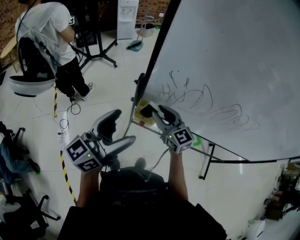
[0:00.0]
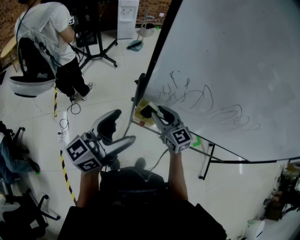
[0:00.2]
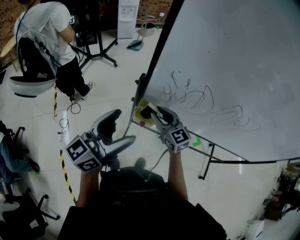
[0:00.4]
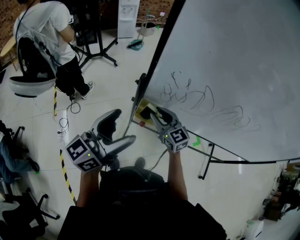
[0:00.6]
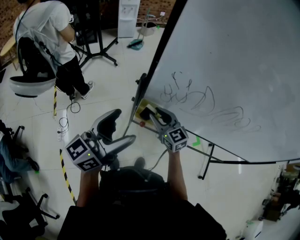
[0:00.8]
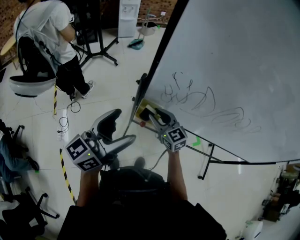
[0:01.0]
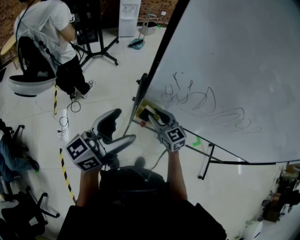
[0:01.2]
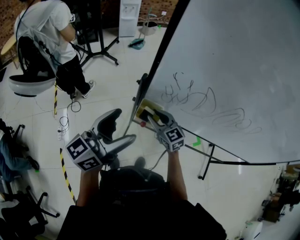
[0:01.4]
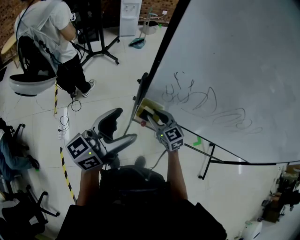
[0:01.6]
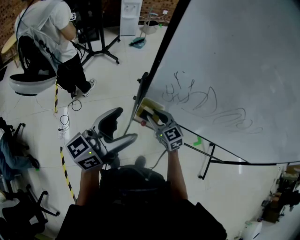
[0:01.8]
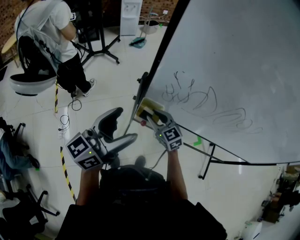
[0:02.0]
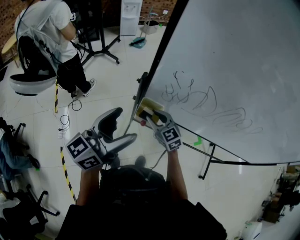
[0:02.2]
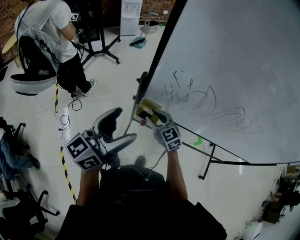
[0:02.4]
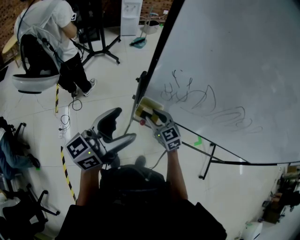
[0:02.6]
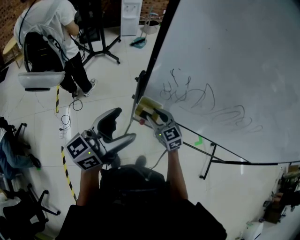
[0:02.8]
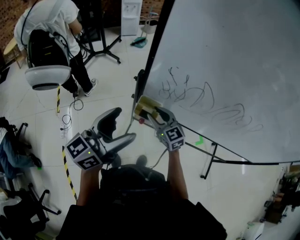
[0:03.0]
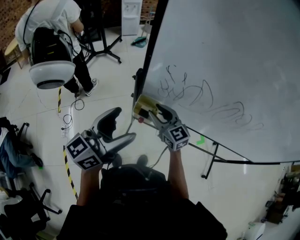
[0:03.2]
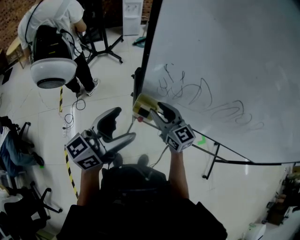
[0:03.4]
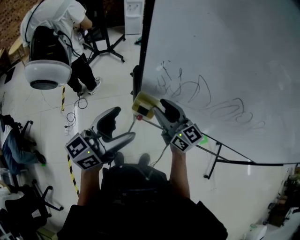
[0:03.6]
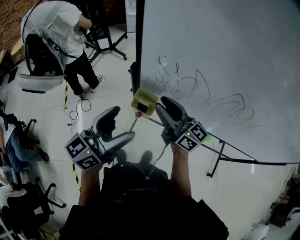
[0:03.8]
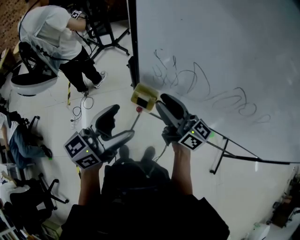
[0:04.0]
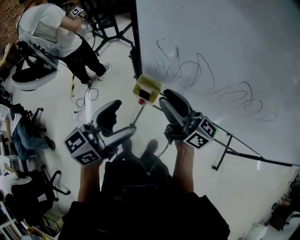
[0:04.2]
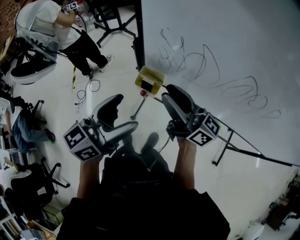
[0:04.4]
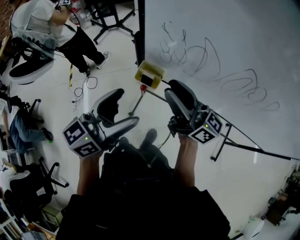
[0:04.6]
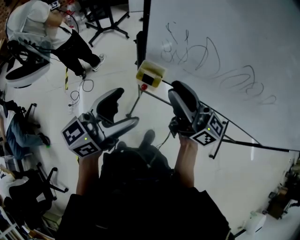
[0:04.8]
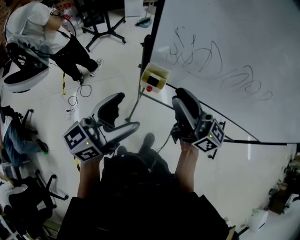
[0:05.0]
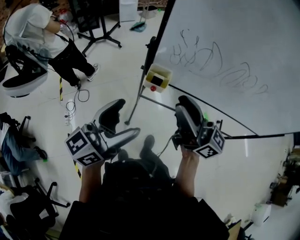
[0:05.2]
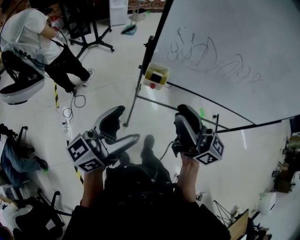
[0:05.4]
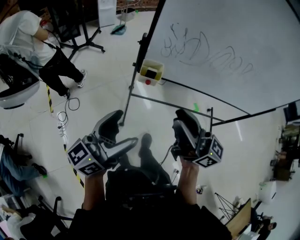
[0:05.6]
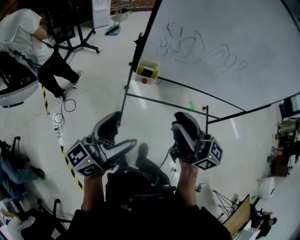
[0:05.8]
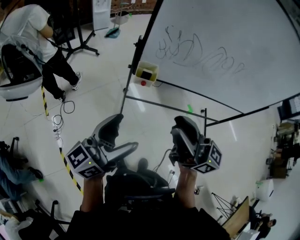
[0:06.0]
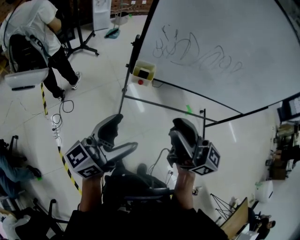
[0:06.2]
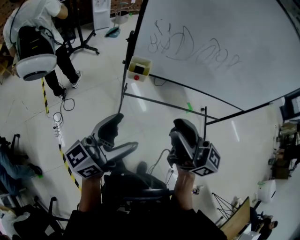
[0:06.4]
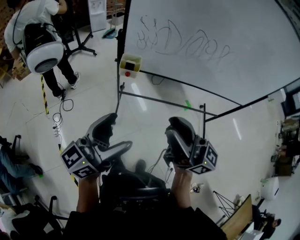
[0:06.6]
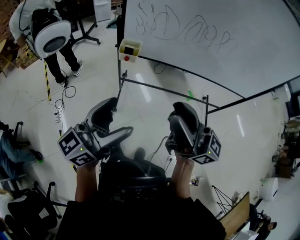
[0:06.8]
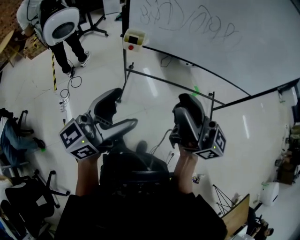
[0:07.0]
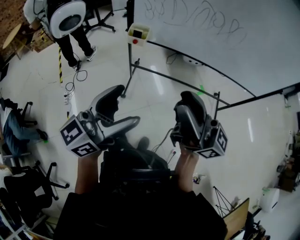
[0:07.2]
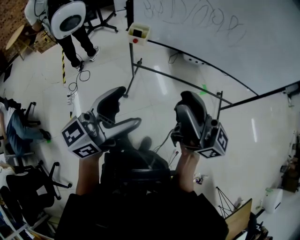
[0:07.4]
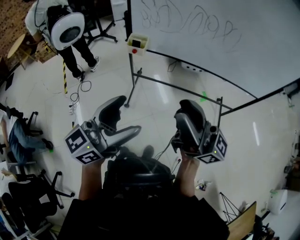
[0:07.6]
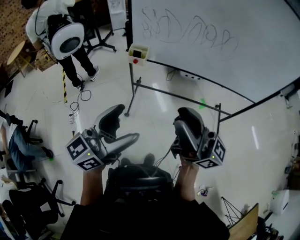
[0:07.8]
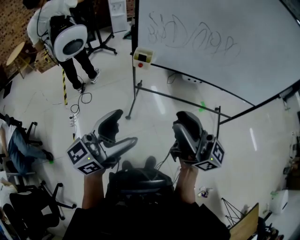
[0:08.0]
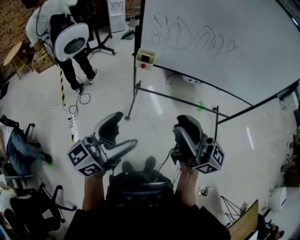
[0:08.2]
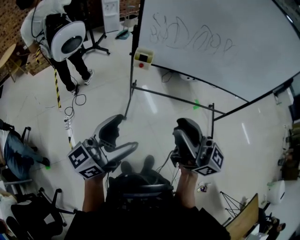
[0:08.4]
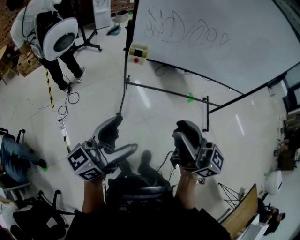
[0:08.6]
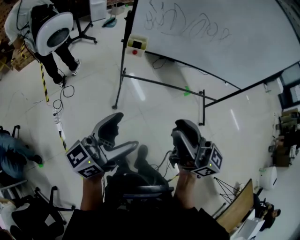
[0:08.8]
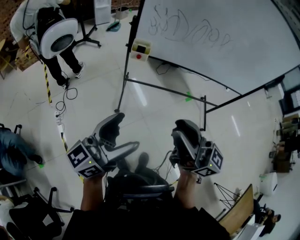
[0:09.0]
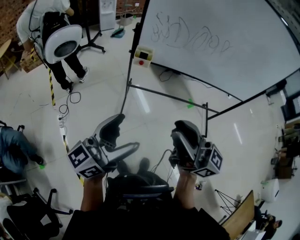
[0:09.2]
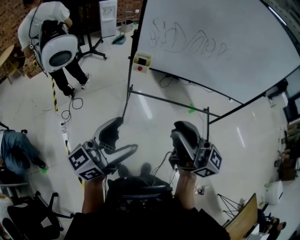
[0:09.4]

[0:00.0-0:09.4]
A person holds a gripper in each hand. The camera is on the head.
0.0 to 1.6 s: The right gripper is displaced downward by approximately 10 cm.
1.6 to 3.2 s: The right gripper shifts by roughly 5 cm.
3.2 to 4.8 s: The left gripper heads backward, covering approximately 5 cm, while the right gripper goes approximately 20 cm upward and backward, and angles its fingers upward, by some 30 degrees.
4.8 to 6.2 s: The left gripper shifts some 20 cm backward and to the left. Meanwhile the right gripper goes some 25 cm backward.
6.2 to 7.8 s: The left gripper heads backward and to the right, covering about 20 cm. The right gripper shifts roughly 20 cm to the right and backward.
7.8 to 9.4 s: The grippers both shift to the left by approximately 10 cm.

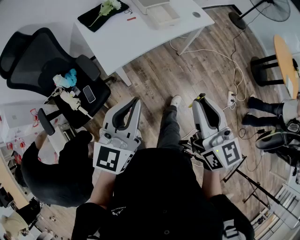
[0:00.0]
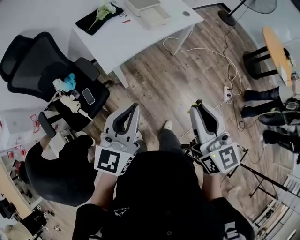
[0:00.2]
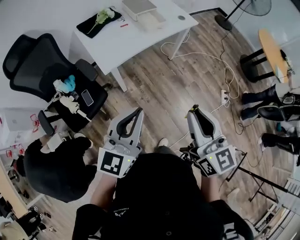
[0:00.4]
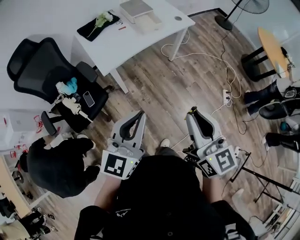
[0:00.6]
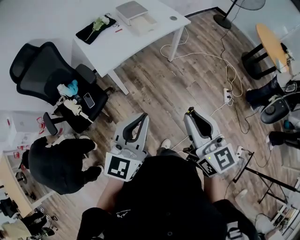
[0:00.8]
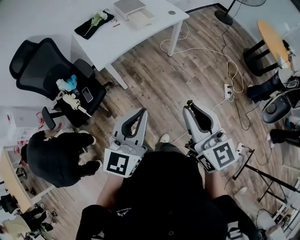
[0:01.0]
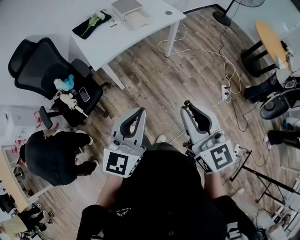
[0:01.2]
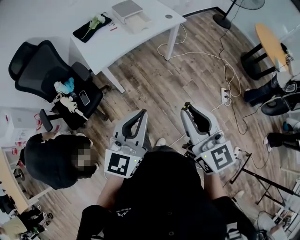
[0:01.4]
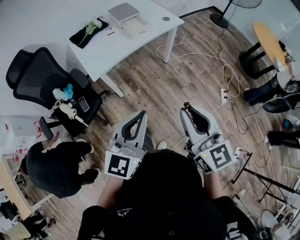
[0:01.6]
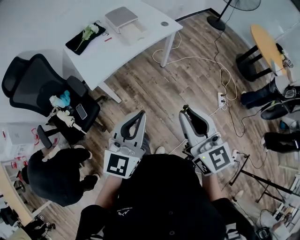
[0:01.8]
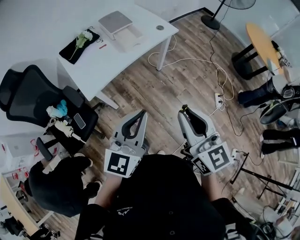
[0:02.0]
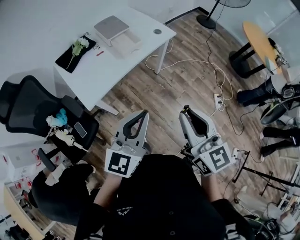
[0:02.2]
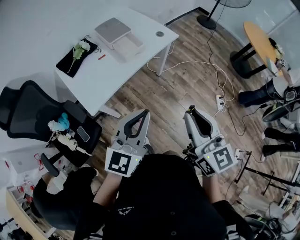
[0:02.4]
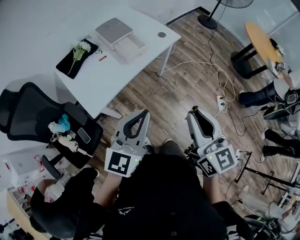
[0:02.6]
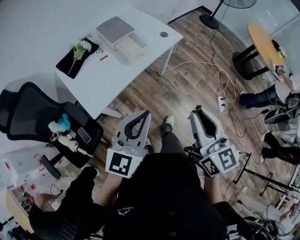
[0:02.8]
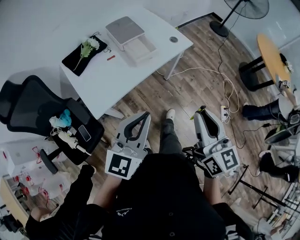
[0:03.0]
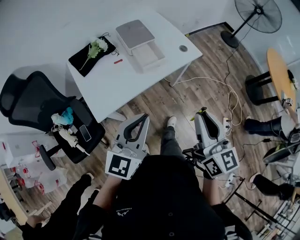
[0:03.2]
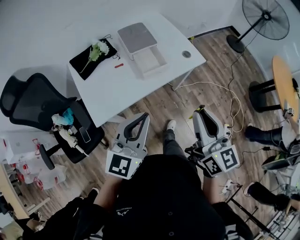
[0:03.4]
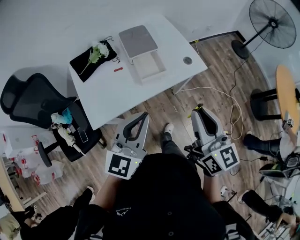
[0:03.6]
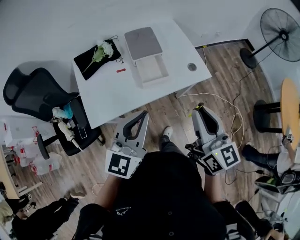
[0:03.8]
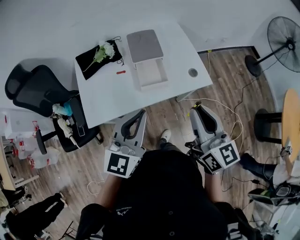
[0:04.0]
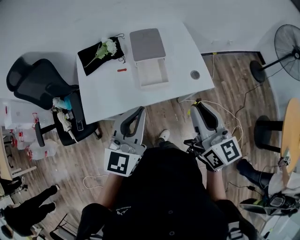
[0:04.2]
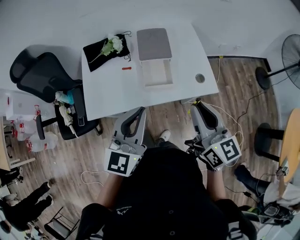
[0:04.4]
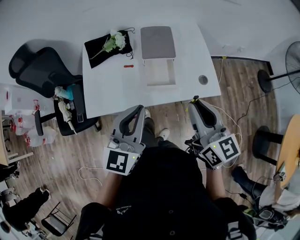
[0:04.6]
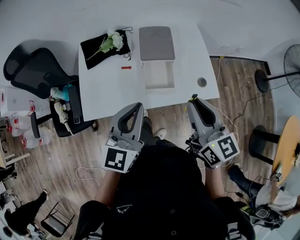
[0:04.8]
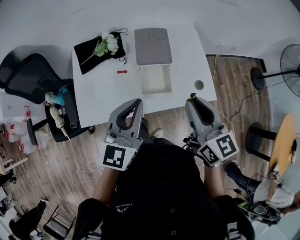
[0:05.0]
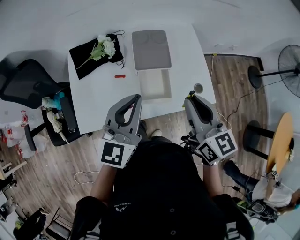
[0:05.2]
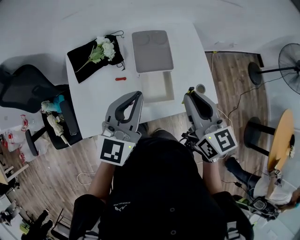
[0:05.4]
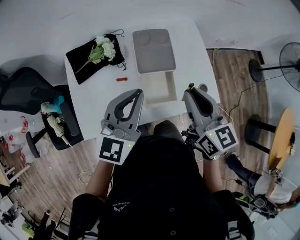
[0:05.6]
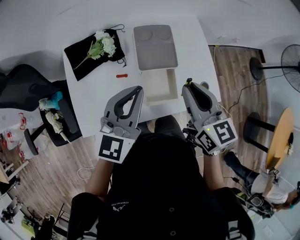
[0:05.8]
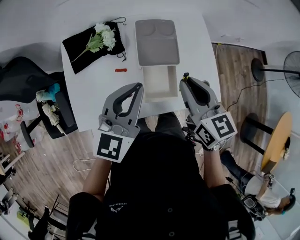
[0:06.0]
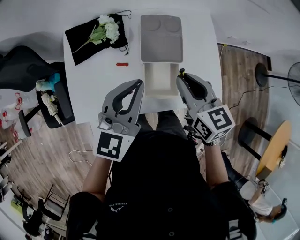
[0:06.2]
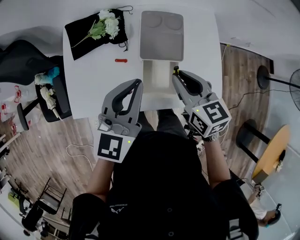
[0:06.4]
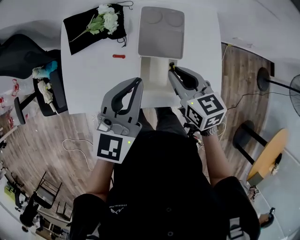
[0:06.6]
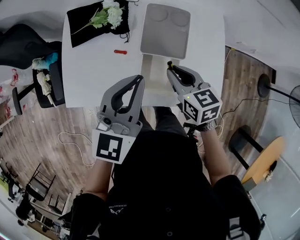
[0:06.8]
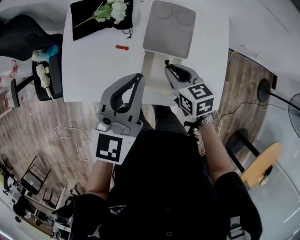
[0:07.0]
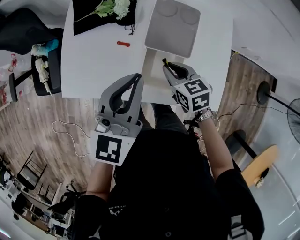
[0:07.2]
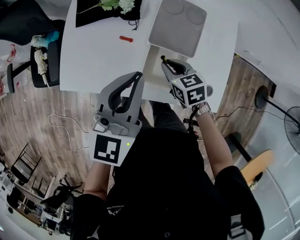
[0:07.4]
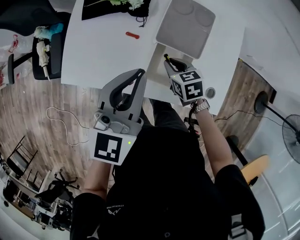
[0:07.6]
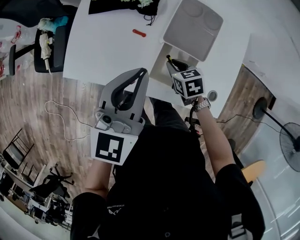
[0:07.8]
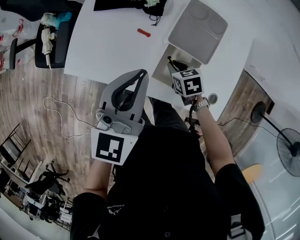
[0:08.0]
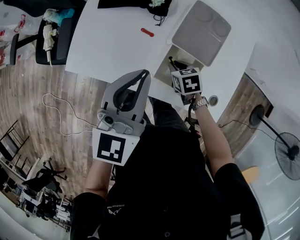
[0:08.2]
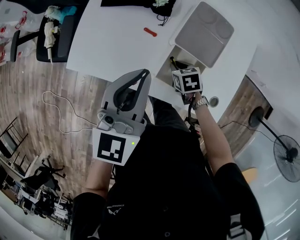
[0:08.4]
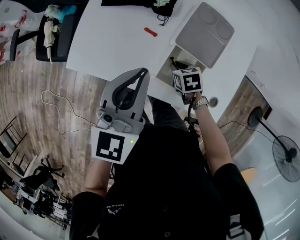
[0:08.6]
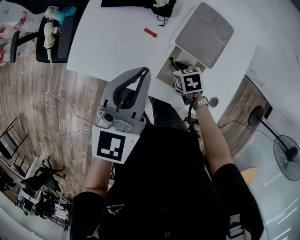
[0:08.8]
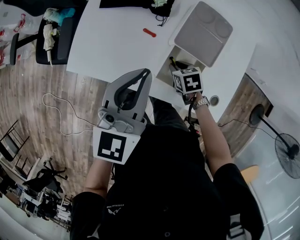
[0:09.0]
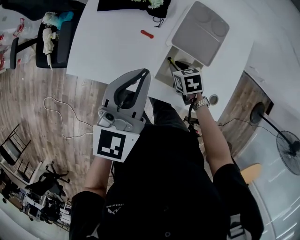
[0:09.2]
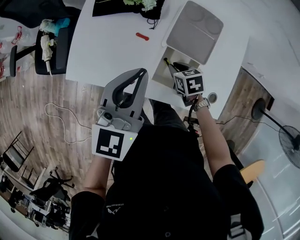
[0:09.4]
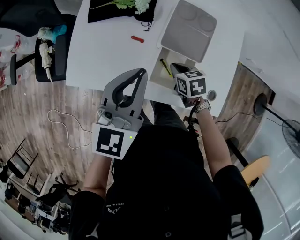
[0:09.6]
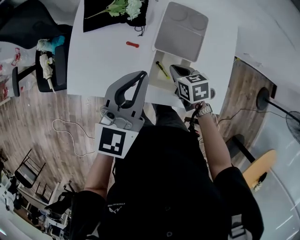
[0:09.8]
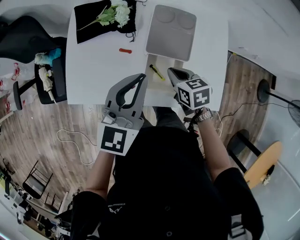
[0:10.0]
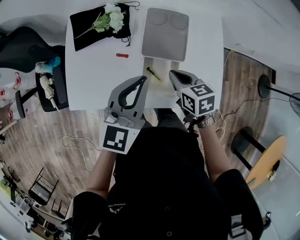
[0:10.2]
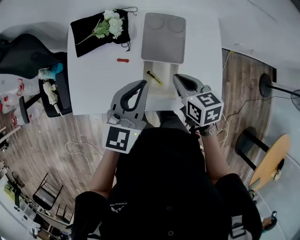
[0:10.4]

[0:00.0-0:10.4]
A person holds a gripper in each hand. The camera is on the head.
0.0 to 1.4 s: Both grippers move backward and to the right, about 25 cm.
1.4 to 3.0 s: Both grippers move forward, about 30 cm.
3.0 to 4.4 s: The right gripper moves roughly 30 cm, and rotates roughly 30 degrees. The left gripper shifts by some 25 cm, and swivels roughly 30 degrees.
4.4 to 6.0 s: The two grippers go some 25 cm forward.
6.0 to 7.4 s: The left gripper changes its angle by some 20 degrees, while the right gripper is displaced downward by about 20 cm, and swivels about 40 degrees.
7.4 to 9.0 s: The left gripper is displaced to the left by about 5 cm. Meanwhile the right gripper shifts about 10 cm downward.
9.0 to 10.4 s: The right gripper moves upward, approximately 20 cm, and changes its angle by some 40 degrees, while the left gripper moves to the right, some 10 cm, and swivels about 20 degrees.

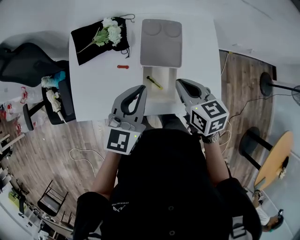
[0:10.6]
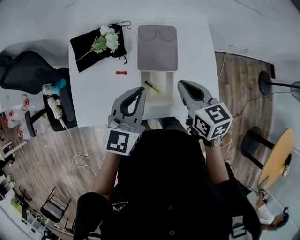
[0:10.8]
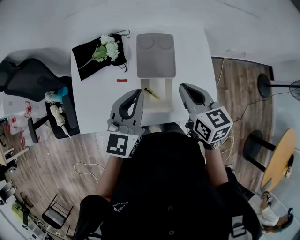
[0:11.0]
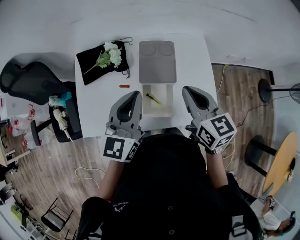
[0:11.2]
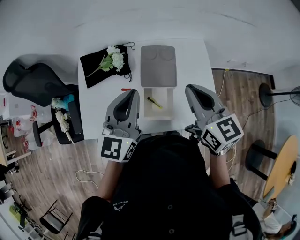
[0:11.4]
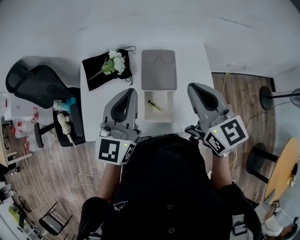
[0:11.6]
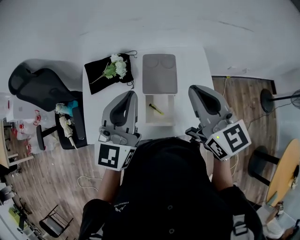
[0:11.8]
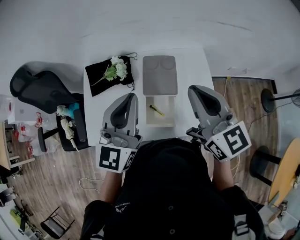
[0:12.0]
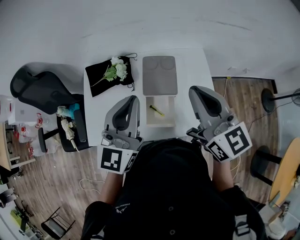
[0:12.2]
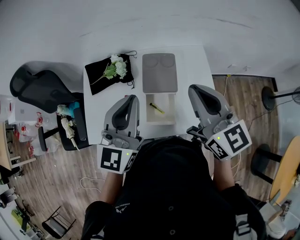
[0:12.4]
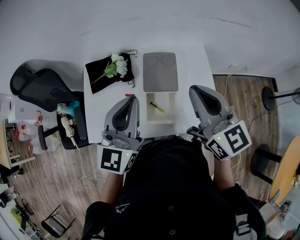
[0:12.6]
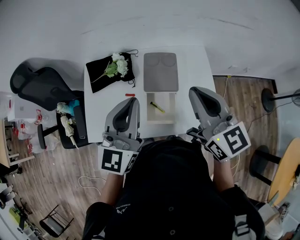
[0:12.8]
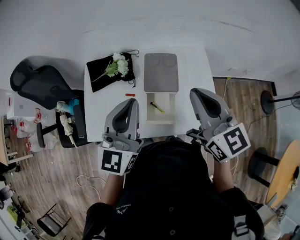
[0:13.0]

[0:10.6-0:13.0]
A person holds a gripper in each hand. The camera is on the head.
10.6 to 11.8 s: The grippers both shift upward by some 20 cm. The right gripper changes its angle by approximately 30 degrees.
11.8 to 13.0 s: The grippers stay close to where they were, moving slightly.

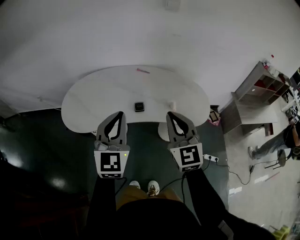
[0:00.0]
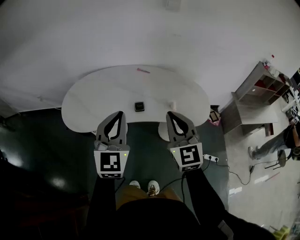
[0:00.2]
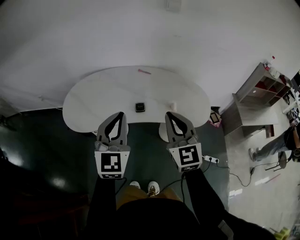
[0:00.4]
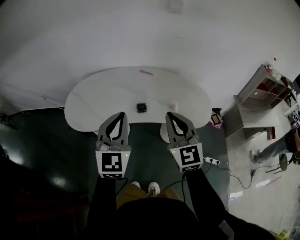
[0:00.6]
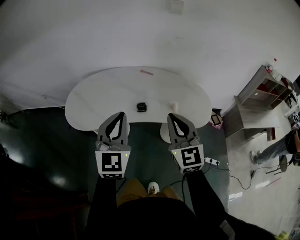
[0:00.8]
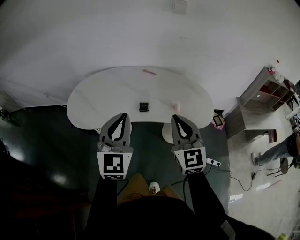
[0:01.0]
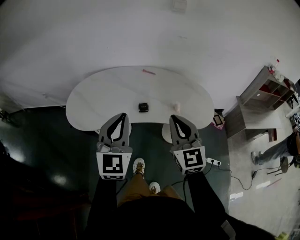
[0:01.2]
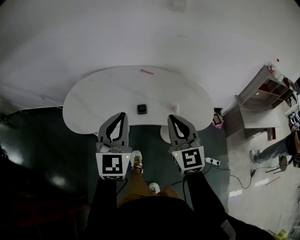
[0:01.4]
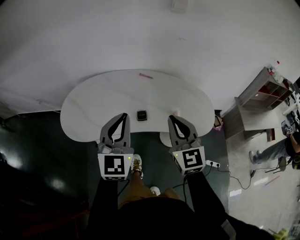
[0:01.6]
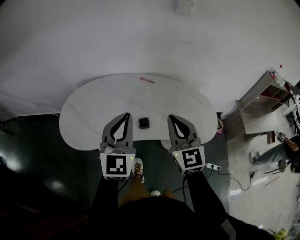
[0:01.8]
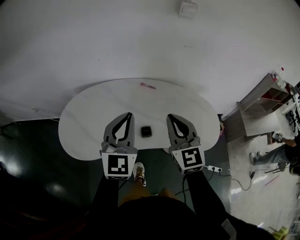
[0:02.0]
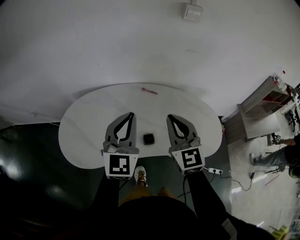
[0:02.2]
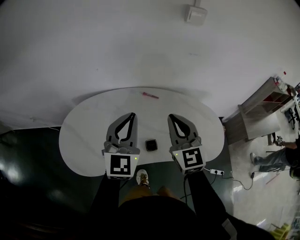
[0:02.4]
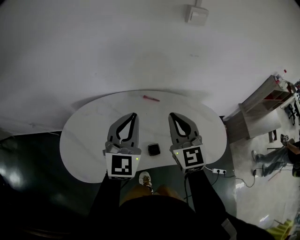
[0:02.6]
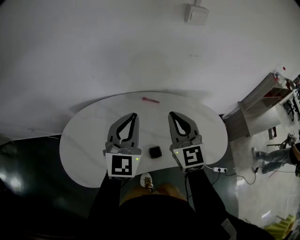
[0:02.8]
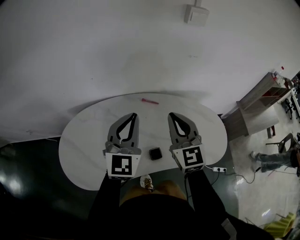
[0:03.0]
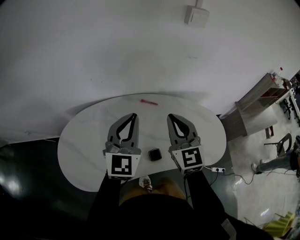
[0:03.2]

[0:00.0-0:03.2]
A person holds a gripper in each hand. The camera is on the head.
0.0 to 1.6 s: The two grippers go some 5 cm forward.
1.6 to 3.2 s: Both grippers move forward, some 25 cm.
